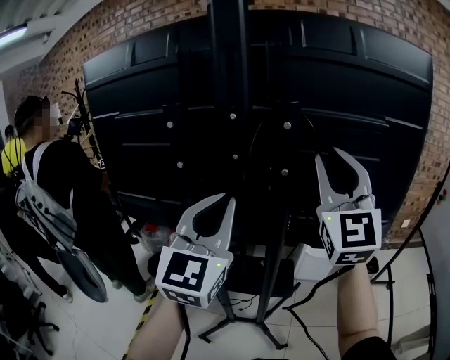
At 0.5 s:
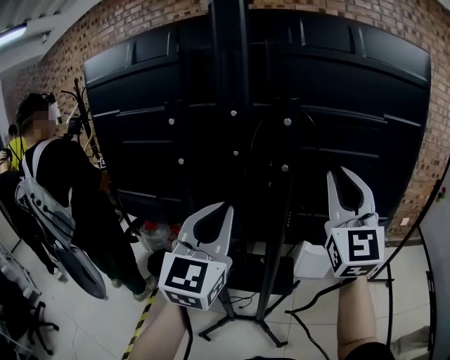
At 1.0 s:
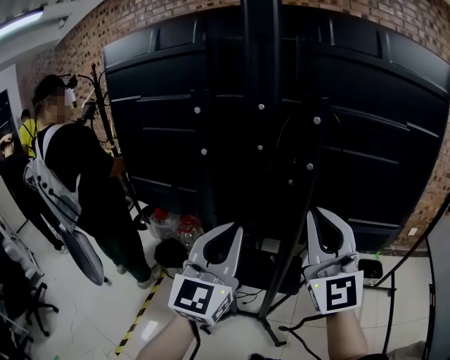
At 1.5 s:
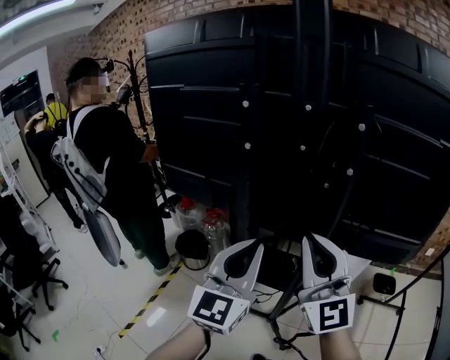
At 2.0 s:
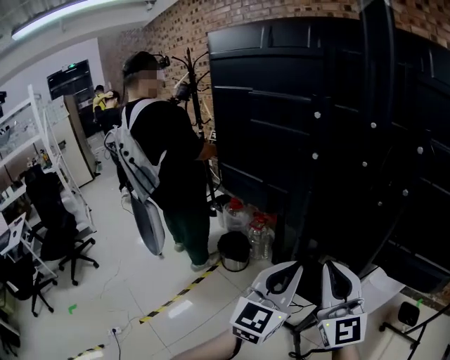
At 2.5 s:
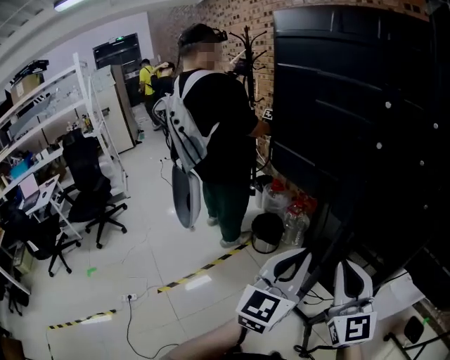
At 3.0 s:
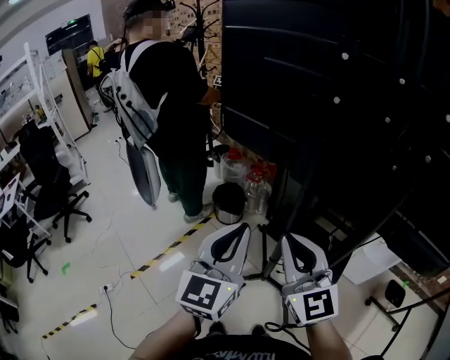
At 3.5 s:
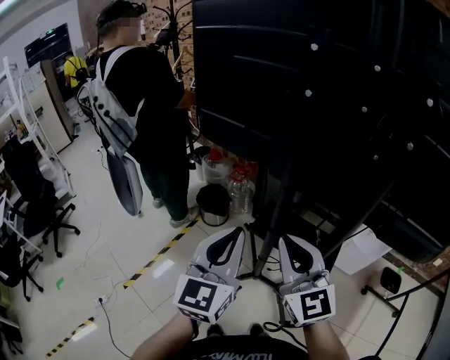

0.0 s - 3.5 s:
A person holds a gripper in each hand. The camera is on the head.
0.0 s - 2.0 s: The right gripper travels downward and to the left by approximately 25 cm, and turns by approximately 40 degrees. The left gripper shifts about 20 cm downward and to the left.
2.0 s - 3.5 s: The right gripper travels to the left and downward by some 10 cm. The left gripper is displaced to the left by roughly 10 cm.

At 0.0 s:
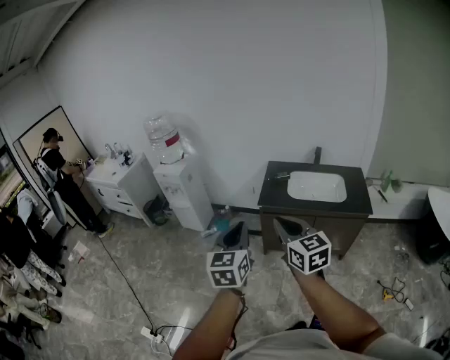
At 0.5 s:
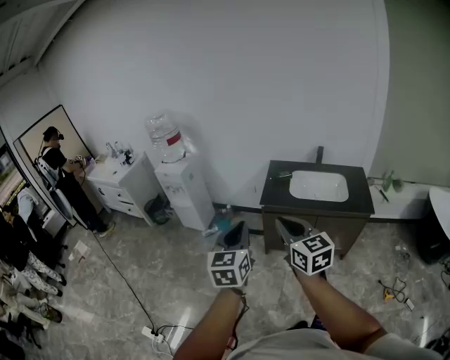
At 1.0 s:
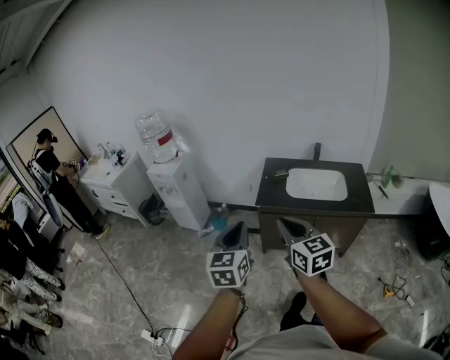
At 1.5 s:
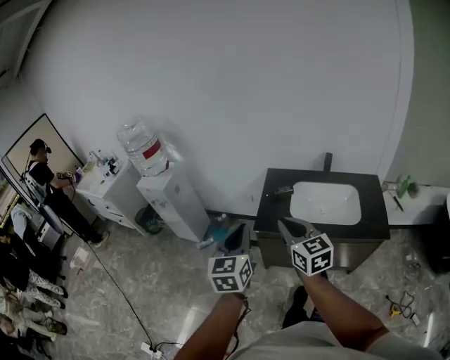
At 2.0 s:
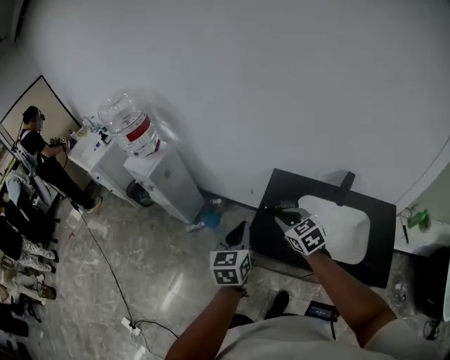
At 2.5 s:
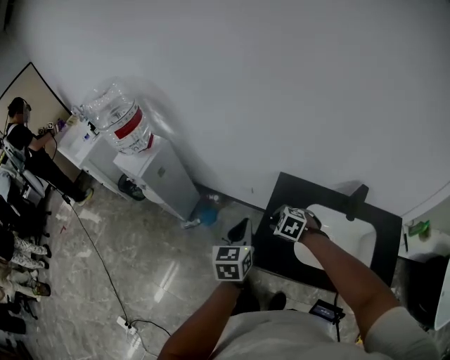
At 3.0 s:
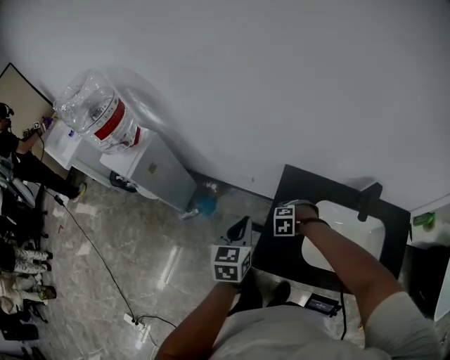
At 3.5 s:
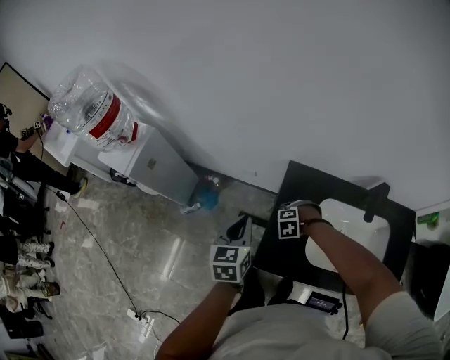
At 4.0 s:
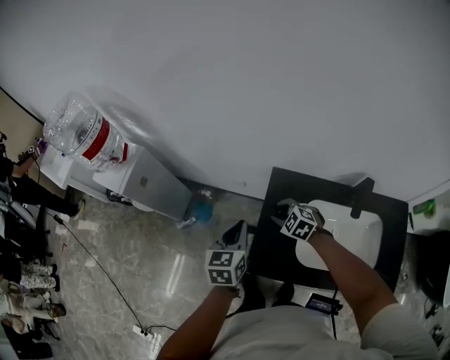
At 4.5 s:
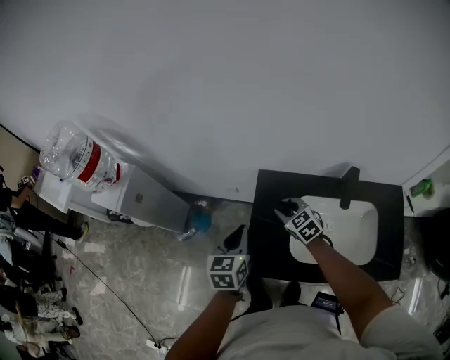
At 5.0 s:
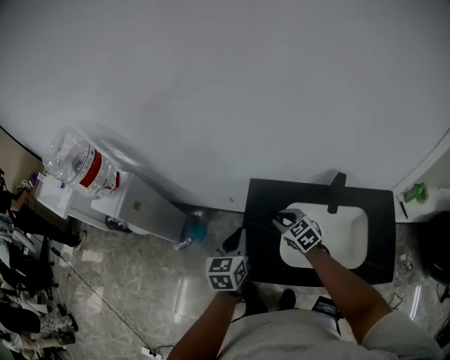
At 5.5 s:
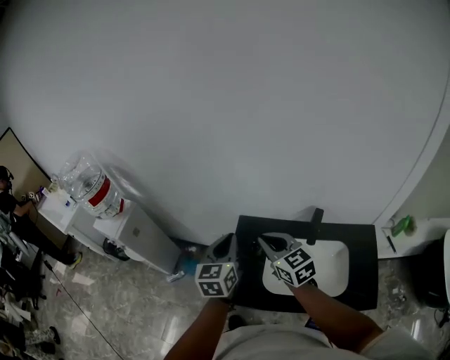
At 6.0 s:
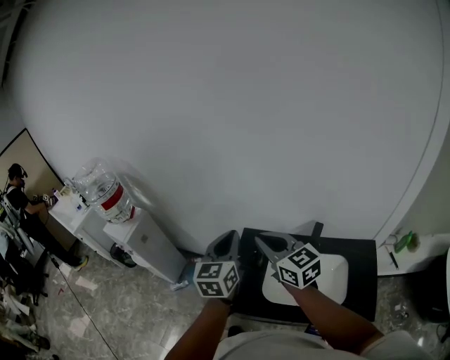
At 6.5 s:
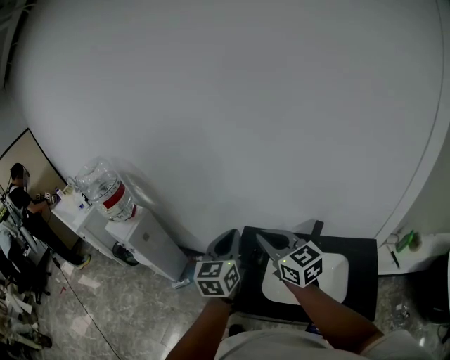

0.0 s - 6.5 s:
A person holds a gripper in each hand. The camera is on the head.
0.0 s - 2.0 s: Both grippers are carried forward, some 60 cm. The right gripper swivels approximately 30 degrees.
2.0 s - 4.5 s: The left gripper ends up approximately 20 cm from where it was. Meanwhile the right gripper shifts by approximately 25 cm.
4.5 s - 6.5 s: The left gripper heads upward and to the right, covering approximately 25 cm, and rotates roughly 20 degrees. Meanwhile the right gripper is displaced upward by roughly 35 cm, points its fingers roughly 30 degrees further upward, and closes.

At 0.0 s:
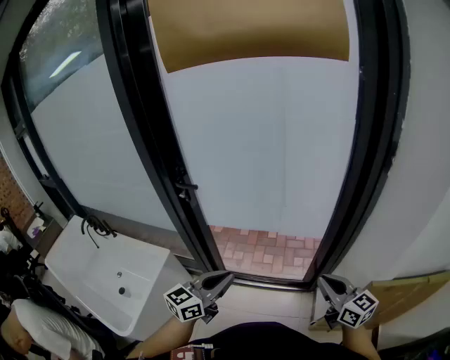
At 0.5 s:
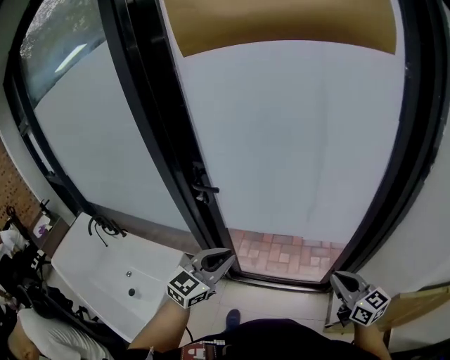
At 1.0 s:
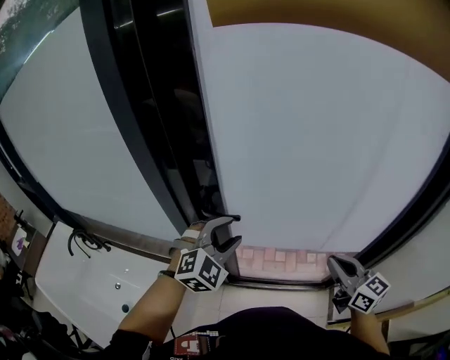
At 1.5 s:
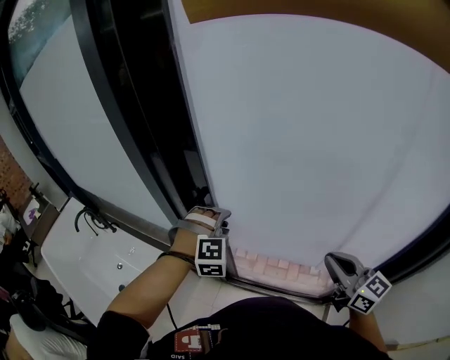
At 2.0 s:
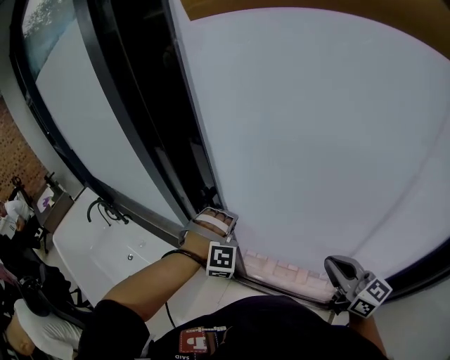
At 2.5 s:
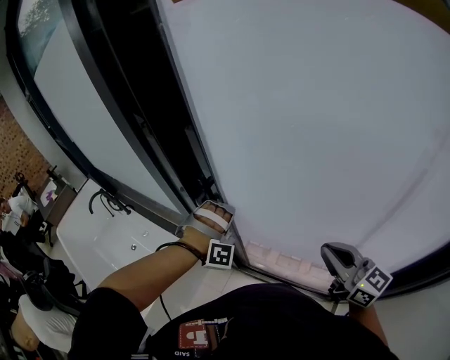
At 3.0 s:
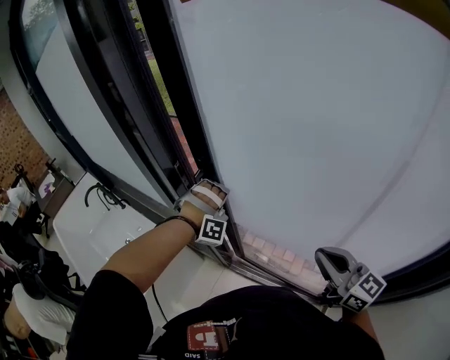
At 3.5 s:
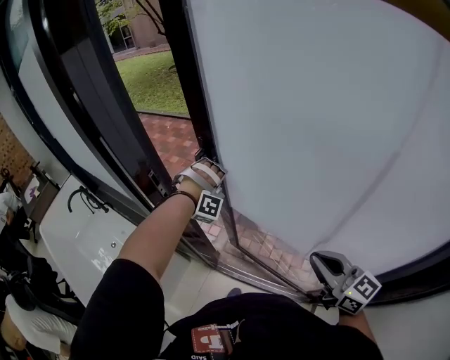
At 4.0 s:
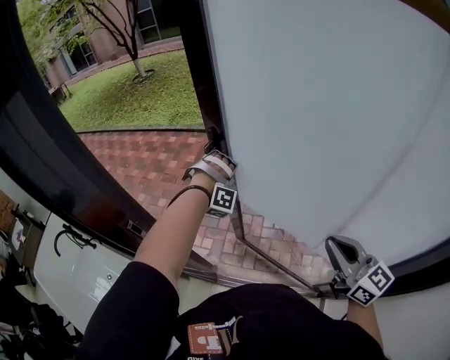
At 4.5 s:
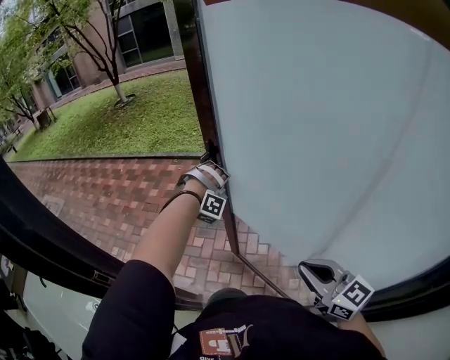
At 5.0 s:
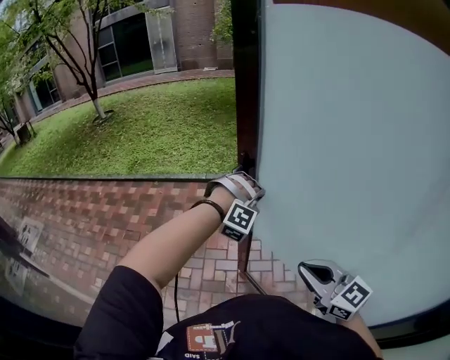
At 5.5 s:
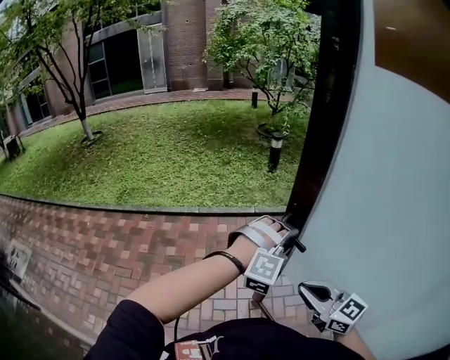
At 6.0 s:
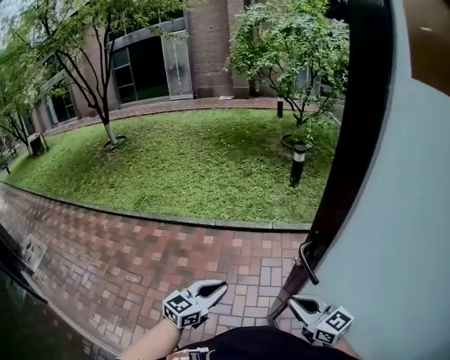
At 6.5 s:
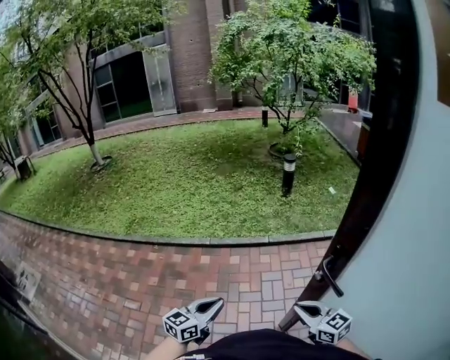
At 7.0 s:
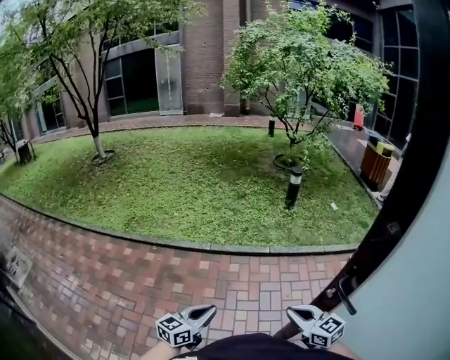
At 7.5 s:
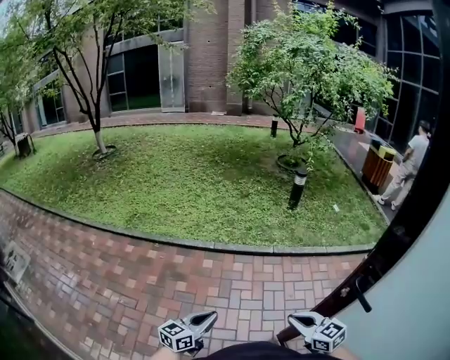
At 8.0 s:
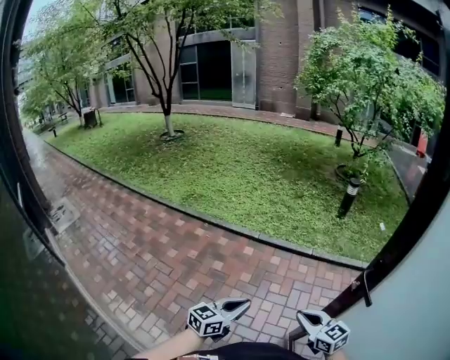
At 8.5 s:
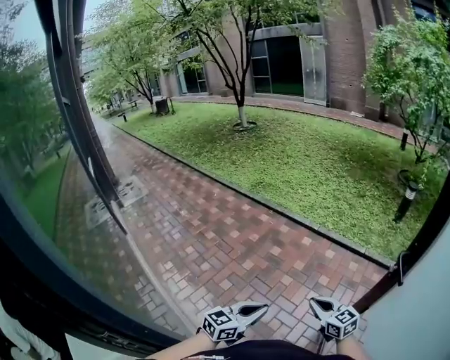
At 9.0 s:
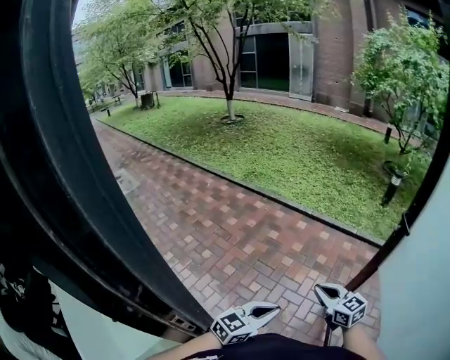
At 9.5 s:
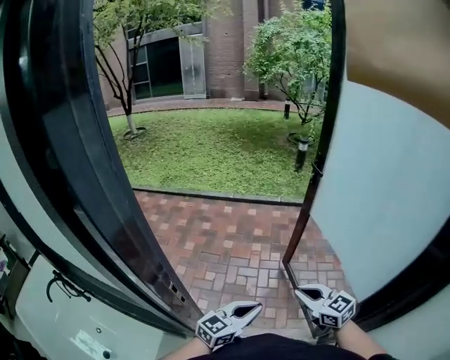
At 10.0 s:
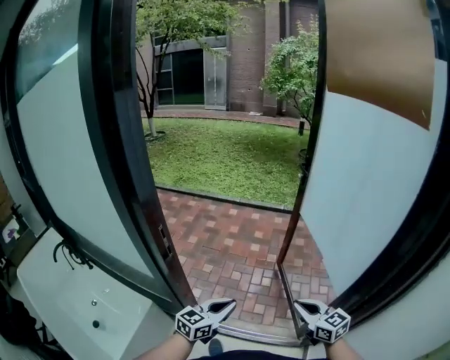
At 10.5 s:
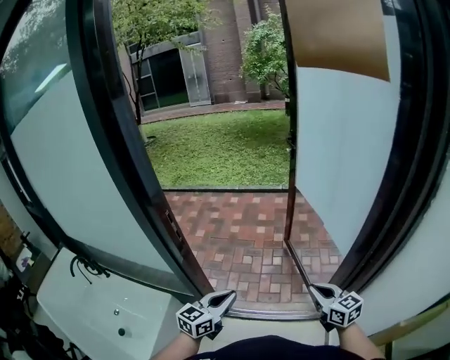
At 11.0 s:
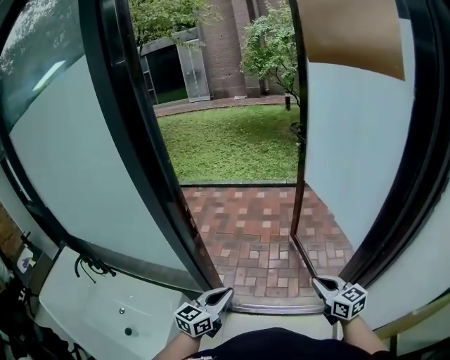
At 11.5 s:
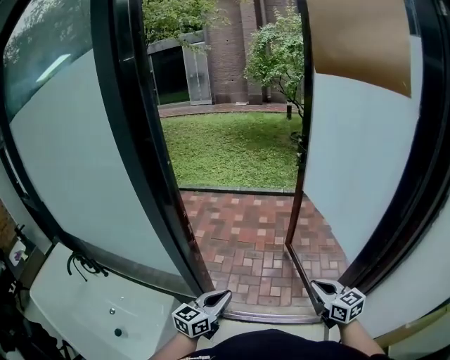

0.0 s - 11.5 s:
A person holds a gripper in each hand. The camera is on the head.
0.0 s - 2.0 s: The right gripper moves about 35 cm, while the left gripper moves approximately 40 cm, rolls clockwise, seen from behind, by some 90 degrees, and opens, then closes once more.
2.0 s - 4.0 s: The left gripper is displaced forward and to the right by approximately 30 cm, and turns by approximately 20 degrees. Meanwhile the right gripper shifts some 15 cm to the right and forward.
4.0 s - 6.0 s: The right gripper changes place by roughly 50 cm. The left gripper travels upward and back again, about 5 cm each way, rotates around the line of its fingers by approximately 110 degrees, counterclockwise from behind, and opens, then closes once more.
6.0 s - 7.5 s: The left gripper shifts approximately 20 cm to the left and downward; the right gripper is displaced to the left, forward and downward by some 15 cm.
7.5 s - 9.5 s: Both grippers are carried some 60 cm.
9.5 s - 11.5 s: The left gripper goes some 20 cm backward. The right gripper goes roughly 25 cm backward and to the right.

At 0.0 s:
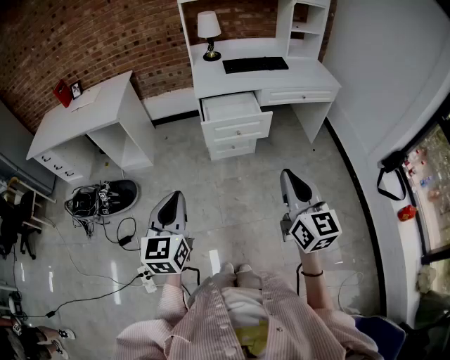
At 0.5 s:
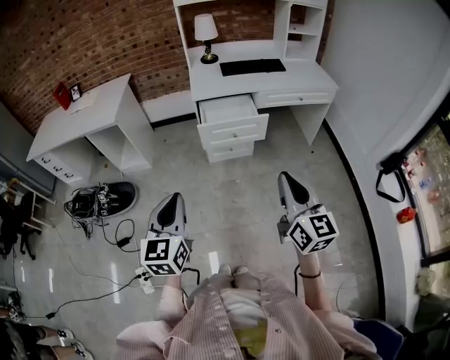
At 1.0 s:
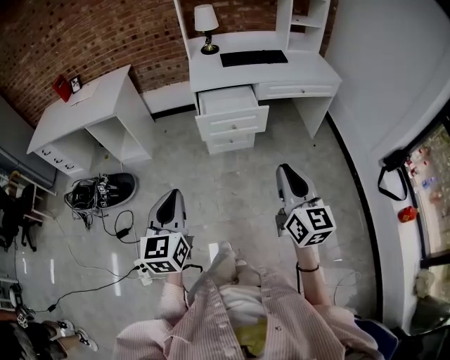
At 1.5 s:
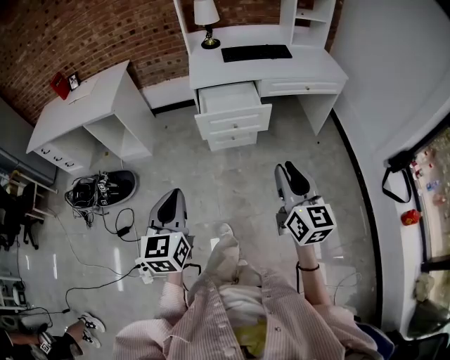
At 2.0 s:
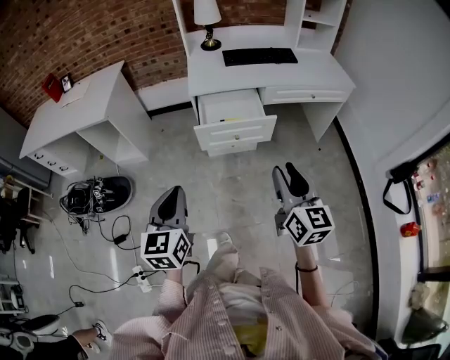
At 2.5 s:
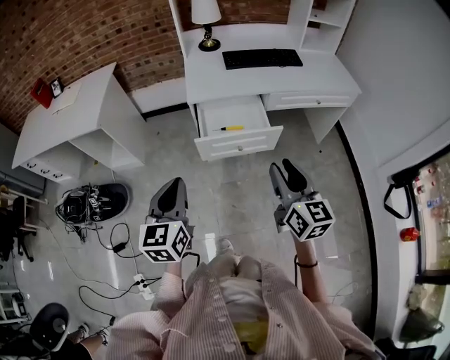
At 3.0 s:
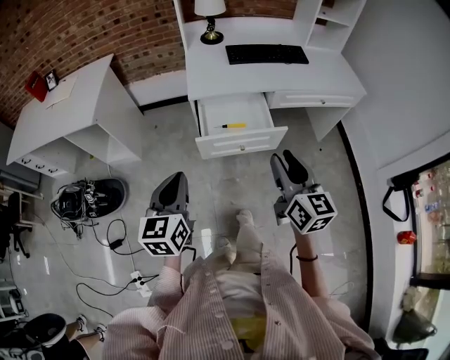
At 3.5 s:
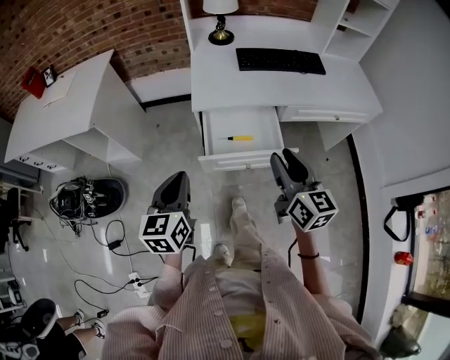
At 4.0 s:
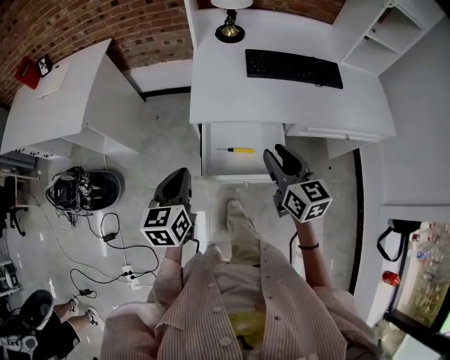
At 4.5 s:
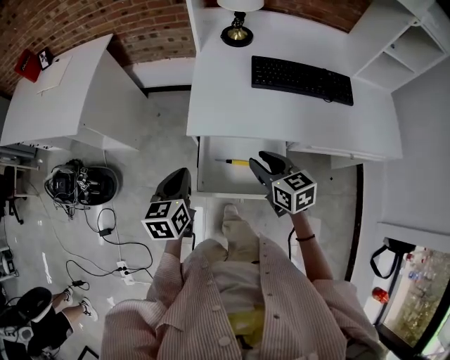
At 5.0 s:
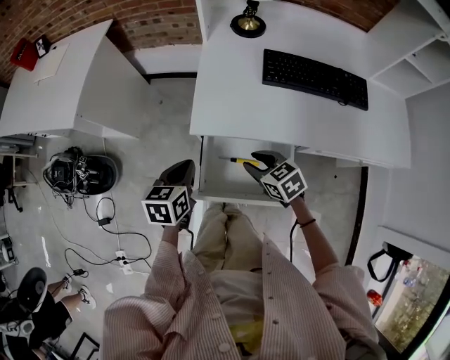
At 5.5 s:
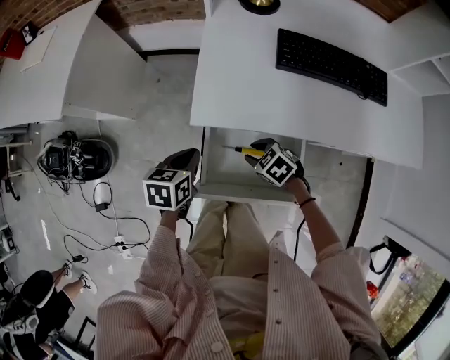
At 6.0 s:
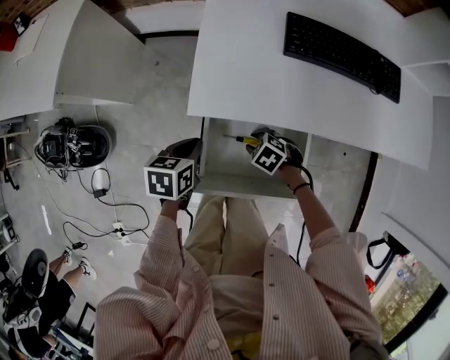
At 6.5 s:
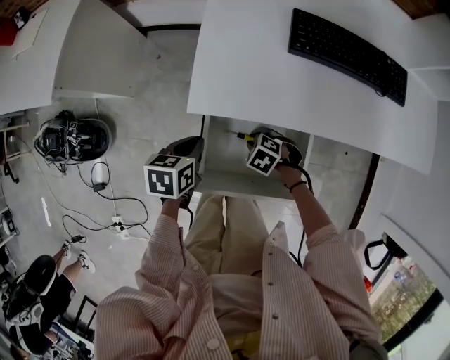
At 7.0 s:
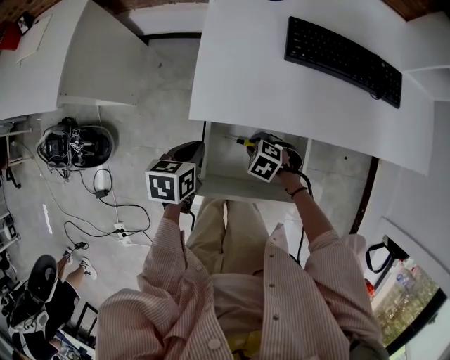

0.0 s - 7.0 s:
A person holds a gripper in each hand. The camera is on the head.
0.0 s - 2.0 s: Both grippers move forward, about 15 cm. The right gripper opens.
2.0 s - 3.5 s: Both grippers travel together forward, roughly 25 cm.
3.5 s - 5.0 s: The two grippers go some 30 cm forward and downward. The right gripper tips its fingers downward by some 40 degrees. Meanwhile the left gripper turns by roughly 20 degrees.
5.0 s - 7.0 s: The right gripper moves downward, approximately 15 cm, and rotates about 40 degrees; the left gripper moves downward, about 10 cm.
